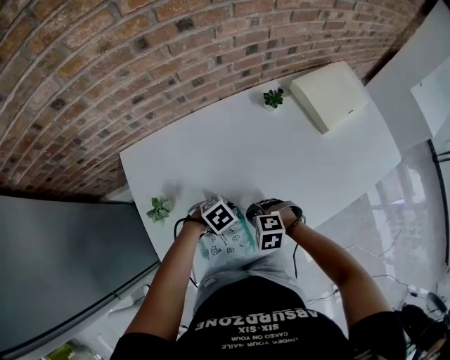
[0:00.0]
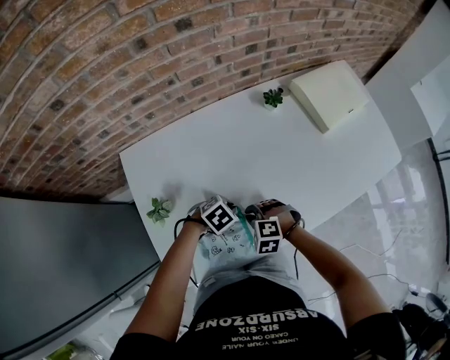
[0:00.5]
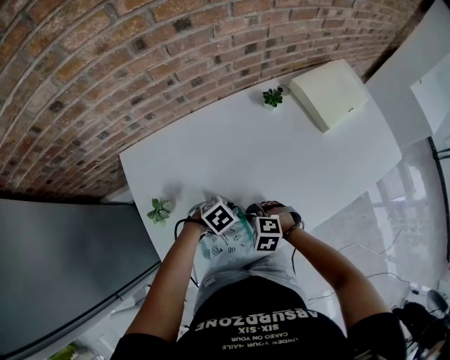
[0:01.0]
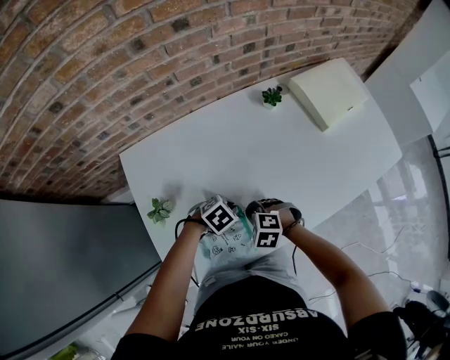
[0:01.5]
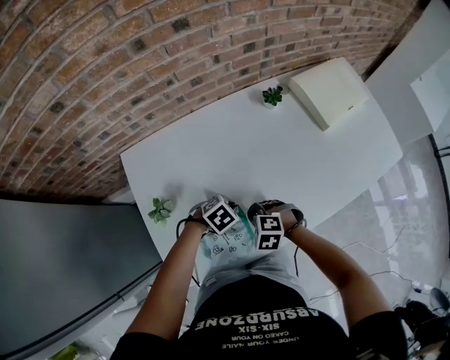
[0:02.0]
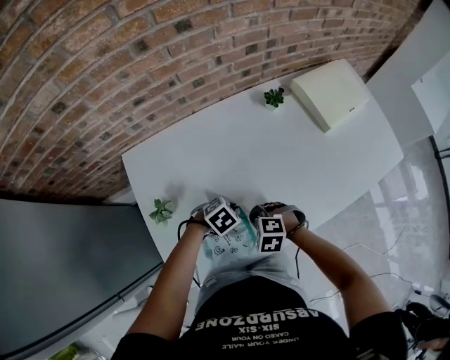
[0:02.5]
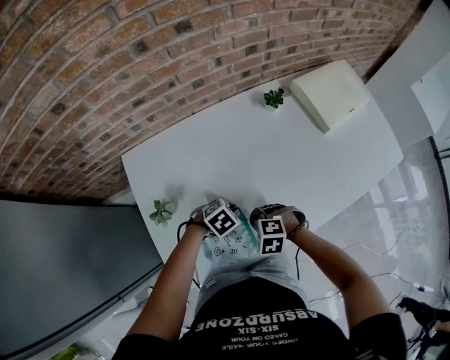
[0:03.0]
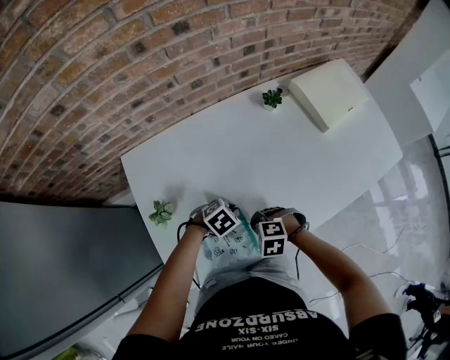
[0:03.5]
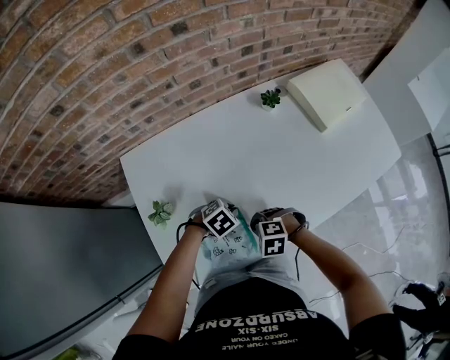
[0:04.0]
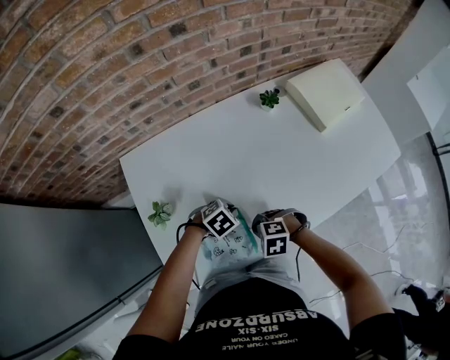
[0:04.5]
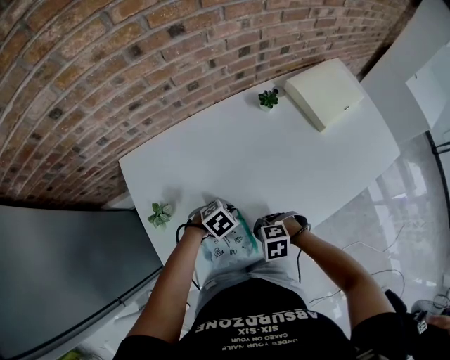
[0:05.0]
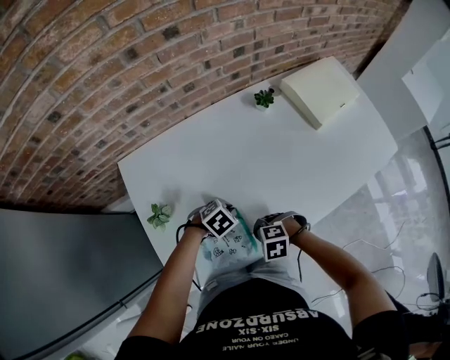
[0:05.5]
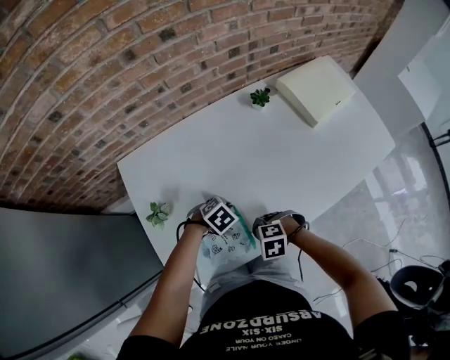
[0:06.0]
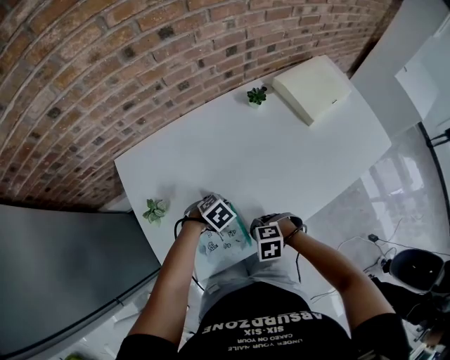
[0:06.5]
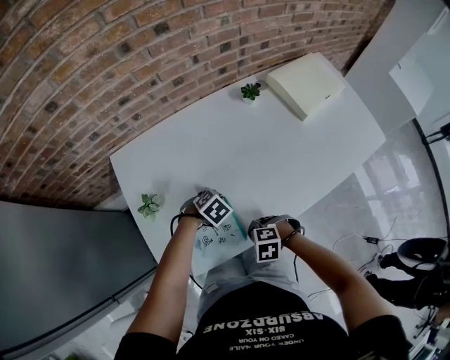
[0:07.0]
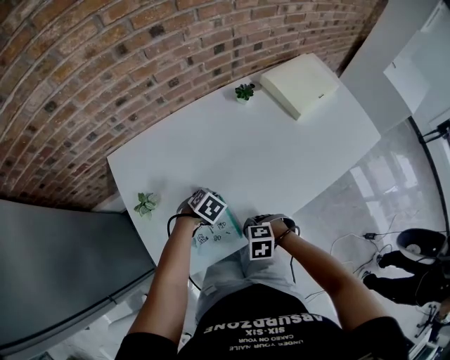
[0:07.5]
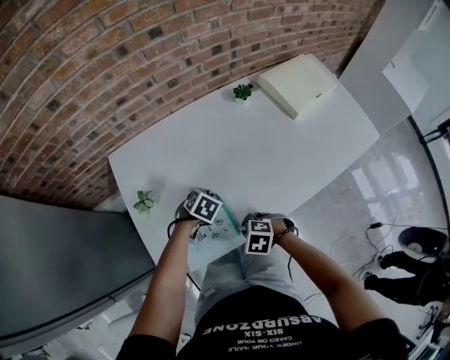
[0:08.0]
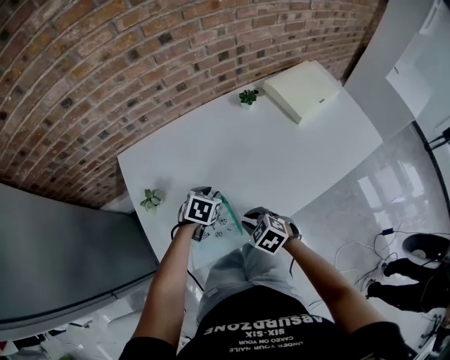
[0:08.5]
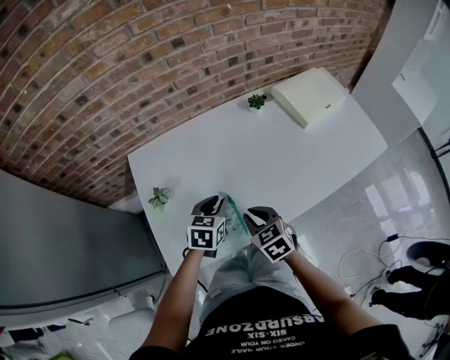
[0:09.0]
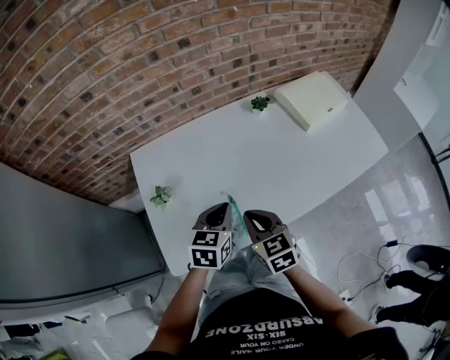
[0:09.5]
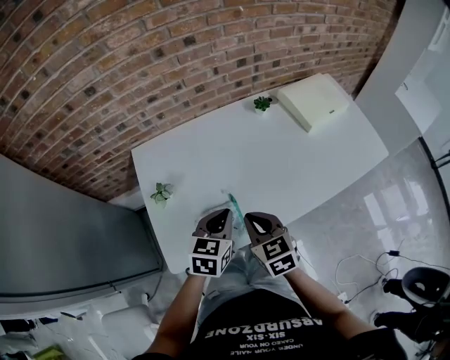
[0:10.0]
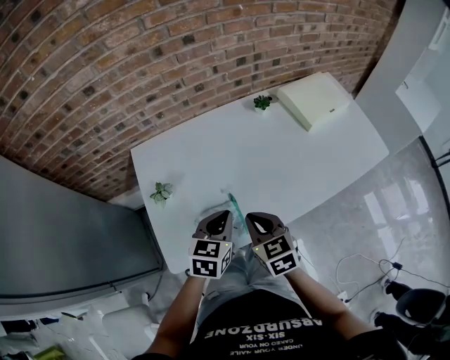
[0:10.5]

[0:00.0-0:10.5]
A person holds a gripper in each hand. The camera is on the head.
0:00.0 to 0:04.0: The grippers stay close to where they were, moving slightly.
0:04.0 to 0:06.5: The right gripper changes place by roughly 5 cm.
0:06.5 to 0:08.5: The grippers both shift upward by some 5 cm. The right gripper changes its angle by some 40 degrees. The left gripper changes its angle by roughly 30 degrees.
0:08.5 to 0:10.5: The left gripper travels upward and backward by about 15 cm, rotates roughly 30 degrees, and closes up; the right gripper shifts approximately 10 cm upward, and turns by about 30 degrees.

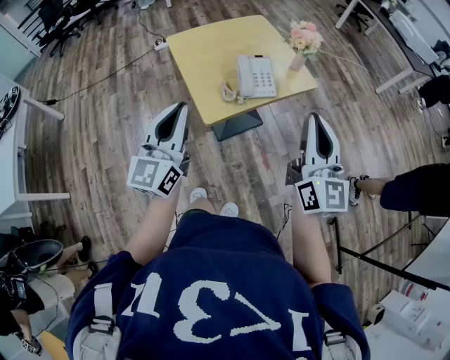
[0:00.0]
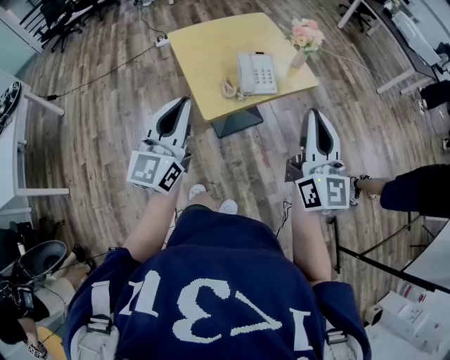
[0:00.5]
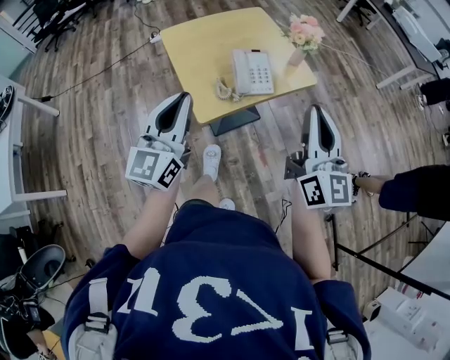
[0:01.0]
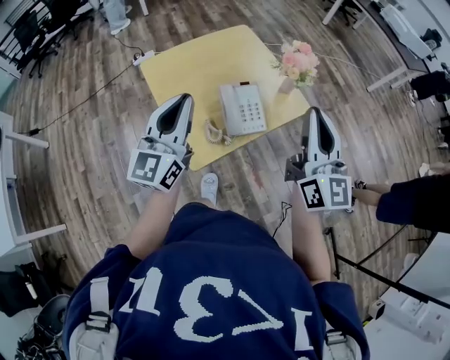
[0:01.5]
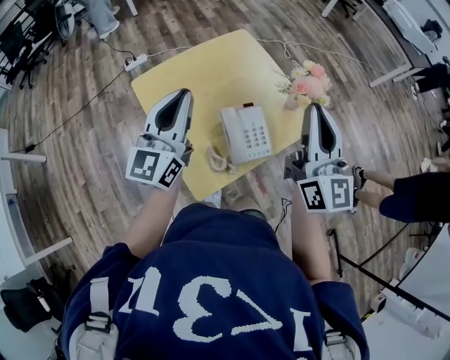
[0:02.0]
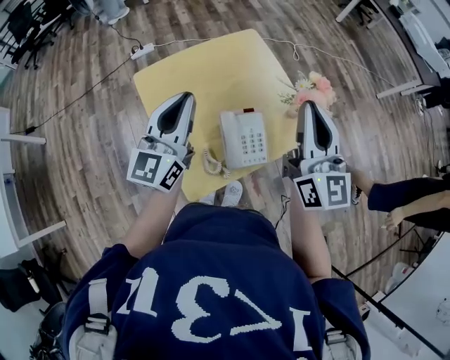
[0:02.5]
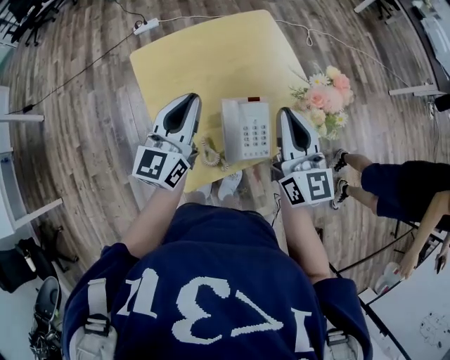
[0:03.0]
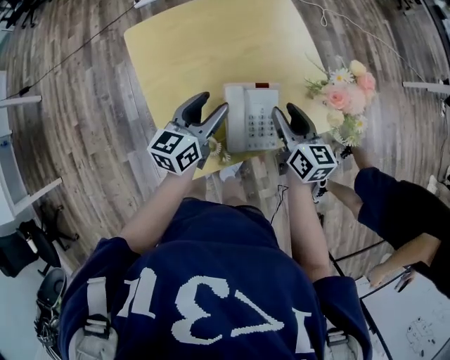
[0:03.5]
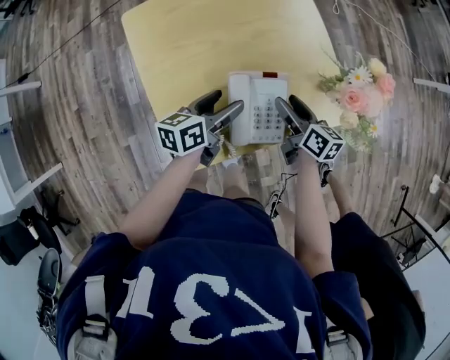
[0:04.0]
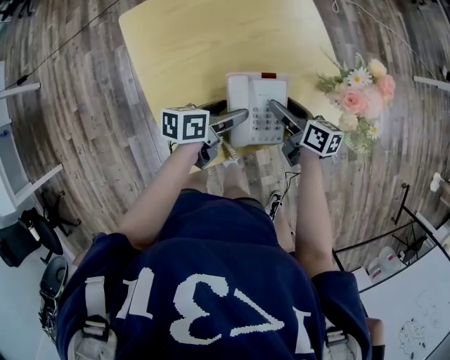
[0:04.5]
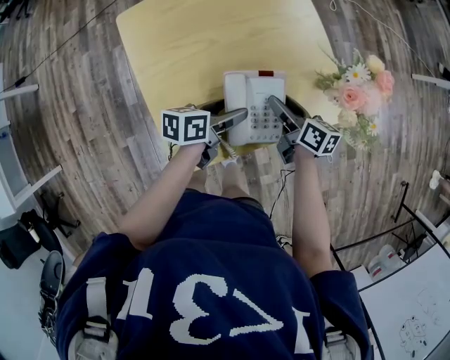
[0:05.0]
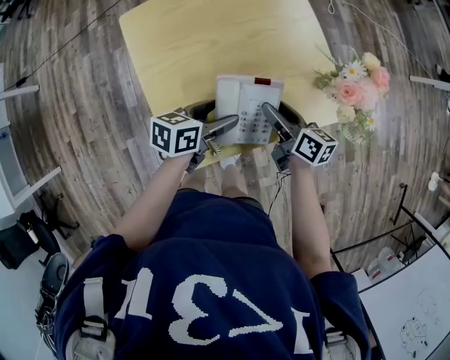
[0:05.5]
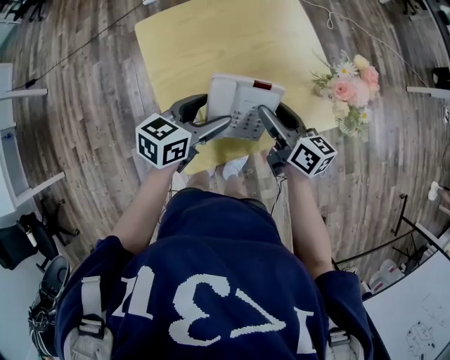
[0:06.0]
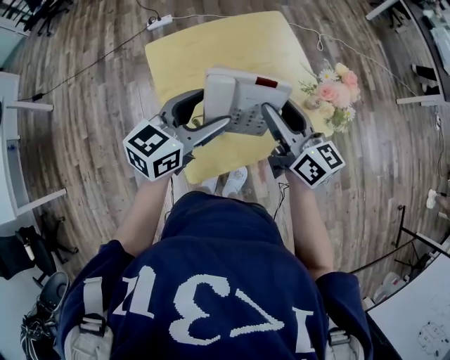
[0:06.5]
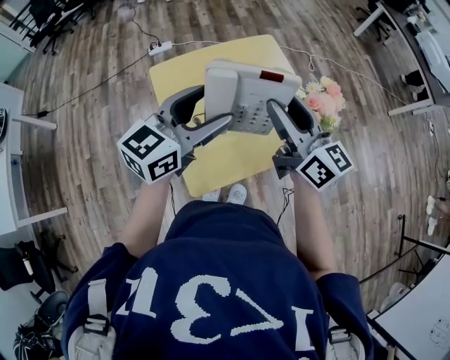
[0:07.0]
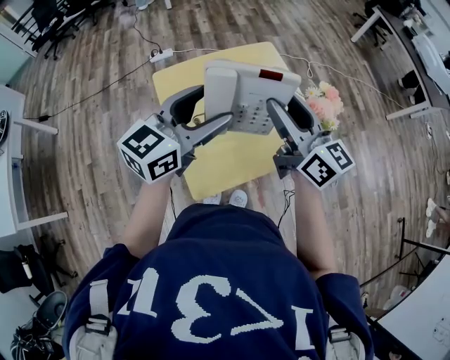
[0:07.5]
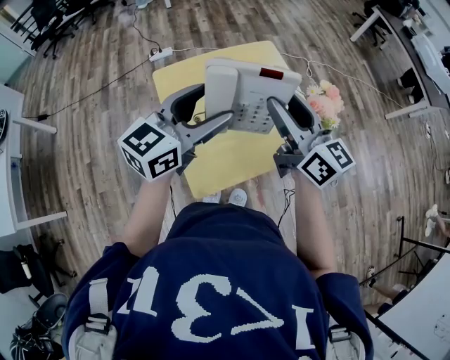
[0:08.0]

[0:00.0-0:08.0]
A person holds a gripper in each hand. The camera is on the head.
0:00.0 to 0:02.0: Both grippers move forward, approximately 35 cm.
0:02.0 to 0:04.0: The grippers both shift downward by approximately 35 cm. The right gripper tips its fingers downward by approximately 40 degrees, and opens. The left gripper points its fingers approximately 30 degrees further downward, and opens up.
0:04.0 to 0:06.0: The left gripper heads upward, covering some 10 cm, and changes its angle by roughly 20 degrees. The right gripper is displaced upward and to the left by about 10 cm.
0:06.0 to 0:08.0: Both grippers move upward, about 25 cm. The right gripper rotates roughly 30 degrees, while the left gripper turns by some 30 degrees.

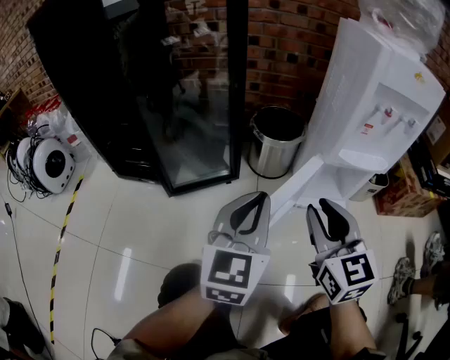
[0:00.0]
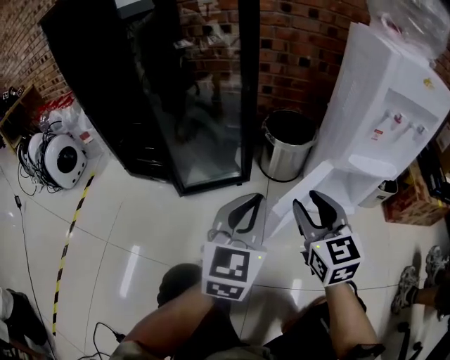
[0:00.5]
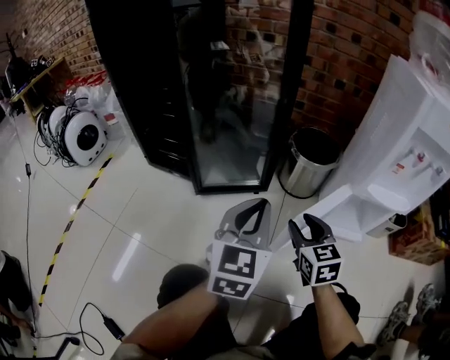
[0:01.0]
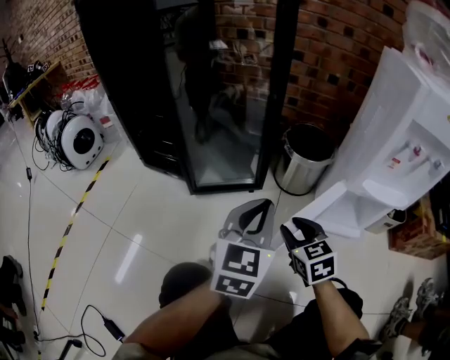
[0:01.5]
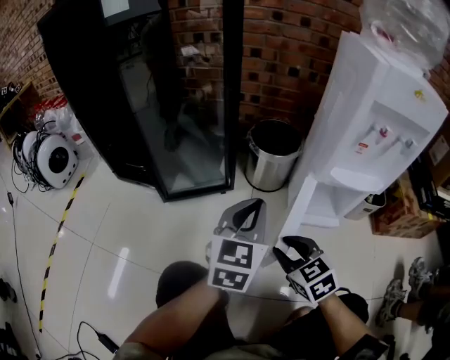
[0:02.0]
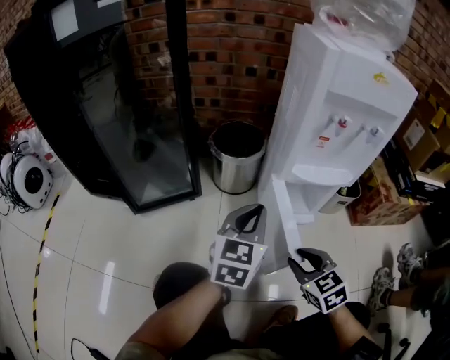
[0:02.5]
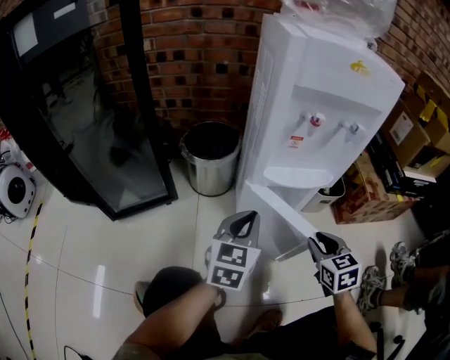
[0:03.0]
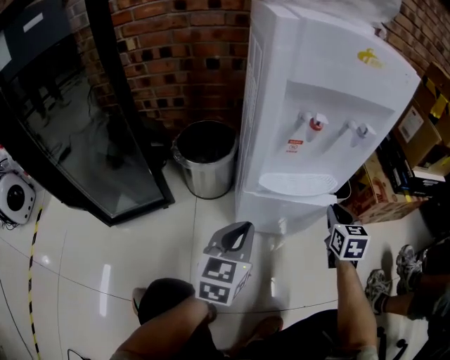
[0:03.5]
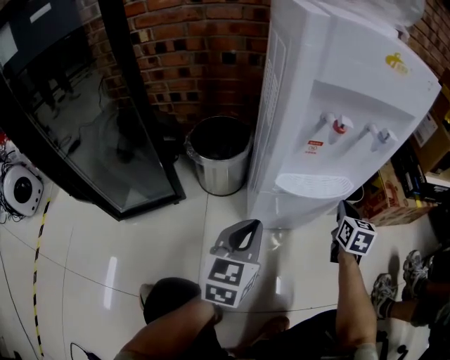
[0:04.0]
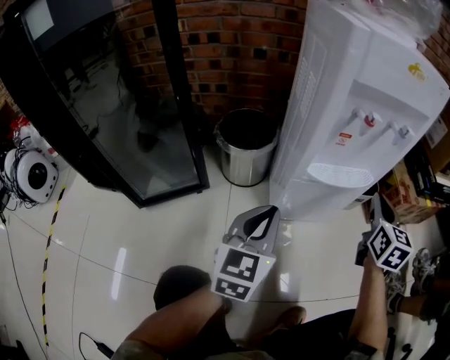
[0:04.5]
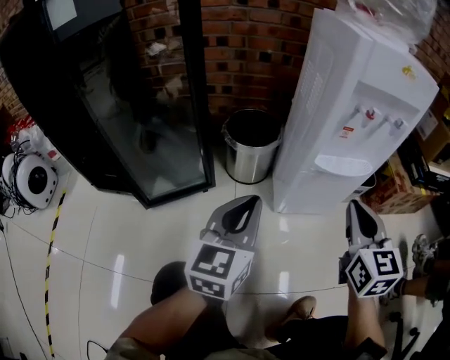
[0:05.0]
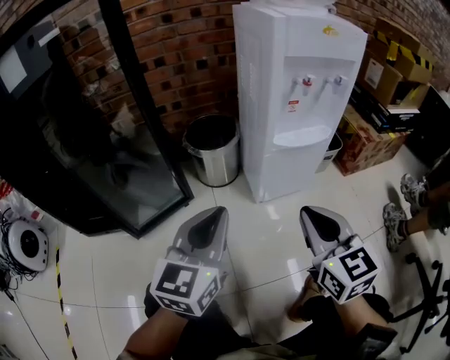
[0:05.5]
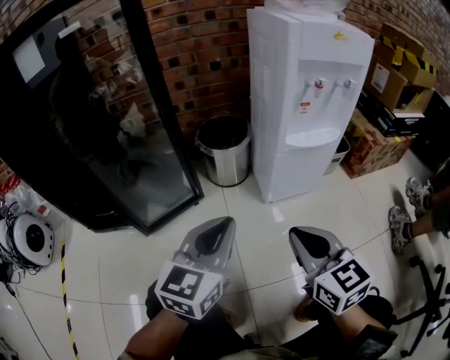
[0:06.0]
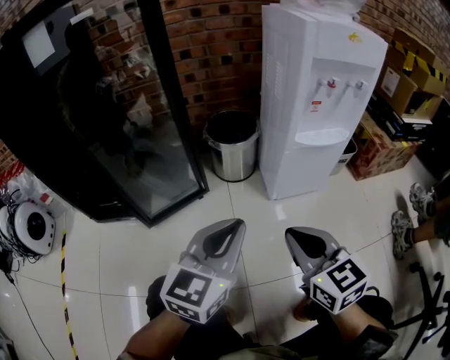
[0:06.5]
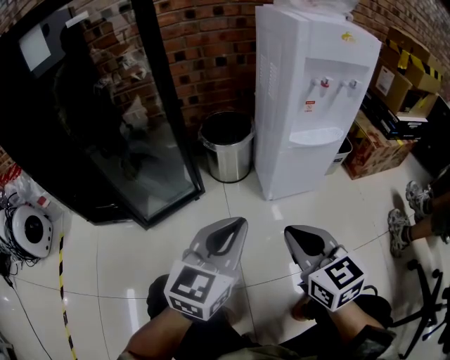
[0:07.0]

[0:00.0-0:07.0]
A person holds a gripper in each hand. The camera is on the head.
0:00.0 to 0:02.0: The left gripper ends up approximately 10 cm from where it was; the right gripper moves downward, approximately 15 cm, and swivels about 30 degrees.
0:02.0 to 0:03.5: The left gripper ends up roughly 20 cm from where it was, while the right gripper changes place by about 40 cm, and changes its angle by some 50 degrees.
0:03.5 to 0:05.0: The right gripper shifts about 30 cm backward, to the left and upward; the left gripper travels to the left, upward and backward by some 20 cm.
0:05.0 to 0:07.0: The right gripper moves backward and to the left, approximately 20 cm. Meanwhile the left gripper shifts approximately 10 cm backward.

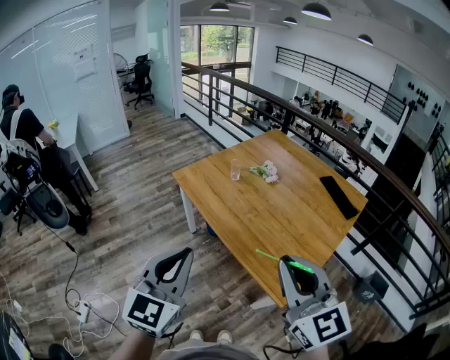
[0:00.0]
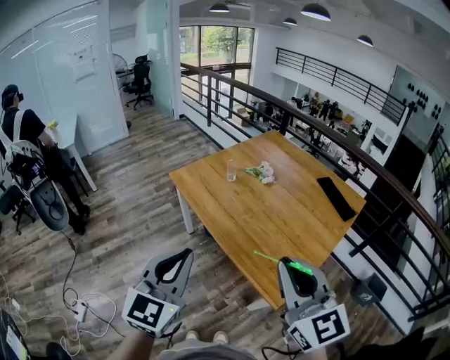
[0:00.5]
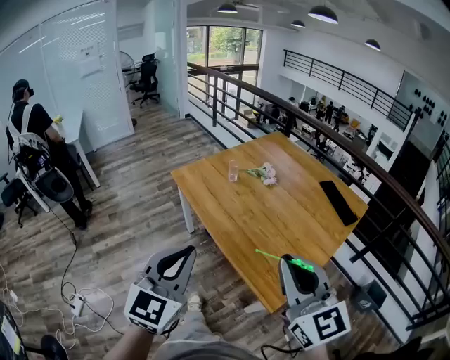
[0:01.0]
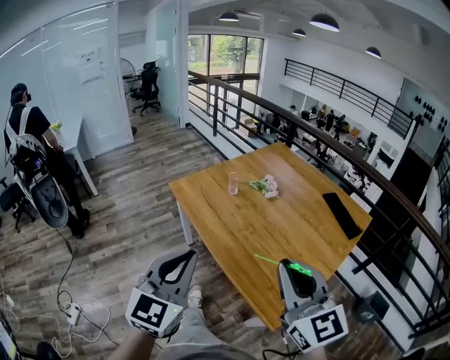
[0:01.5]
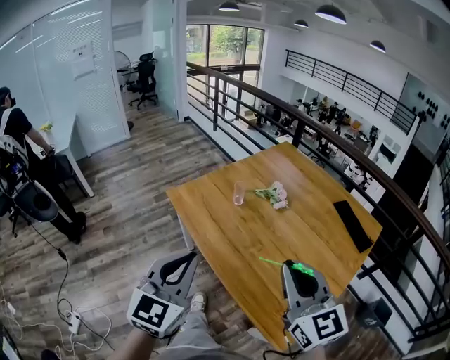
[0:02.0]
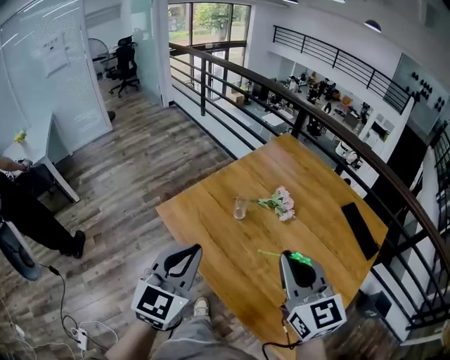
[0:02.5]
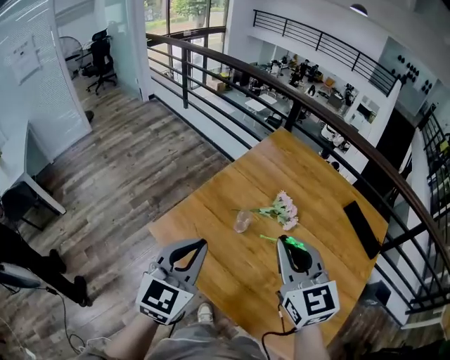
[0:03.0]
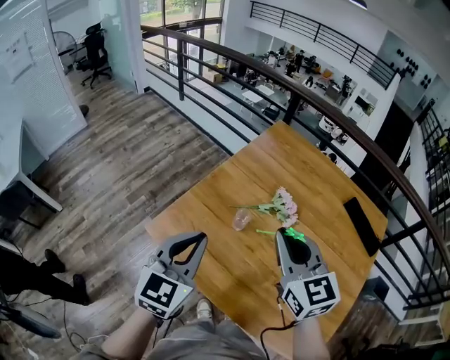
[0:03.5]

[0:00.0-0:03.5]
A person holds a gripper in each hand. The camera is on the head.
0:00.0 to 0:02.0: The two grippers go approximately 15 cm forward.
0:02.0 to 0:03.5: Both grippers move forward, roughly 30 cm.
